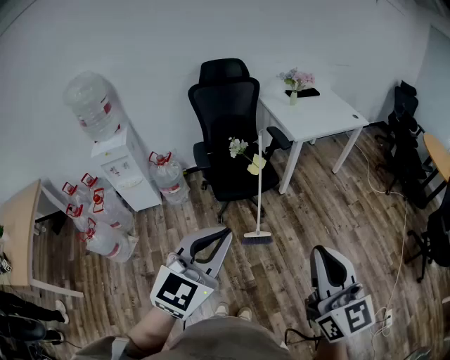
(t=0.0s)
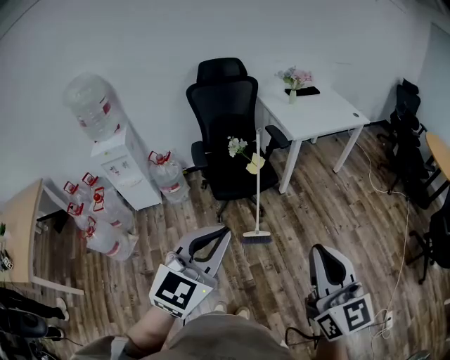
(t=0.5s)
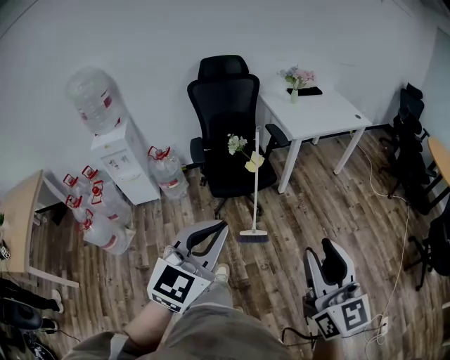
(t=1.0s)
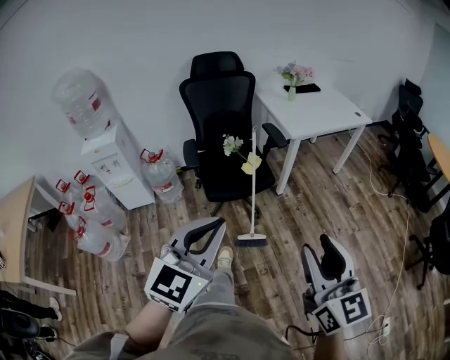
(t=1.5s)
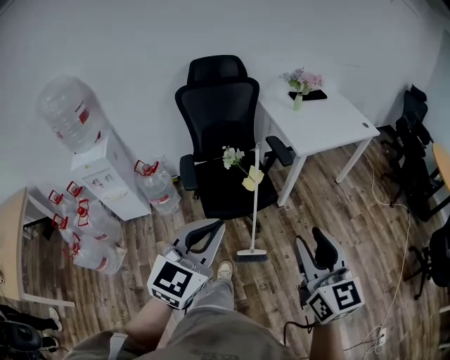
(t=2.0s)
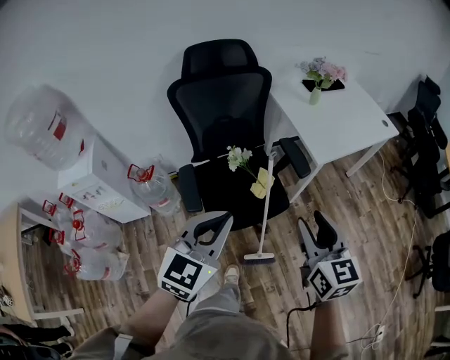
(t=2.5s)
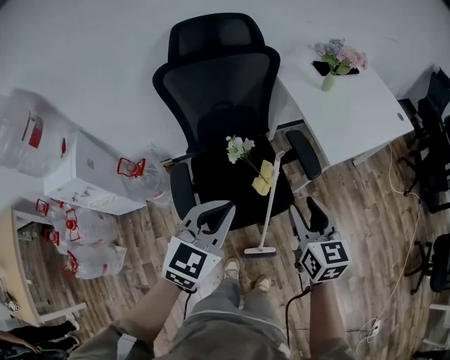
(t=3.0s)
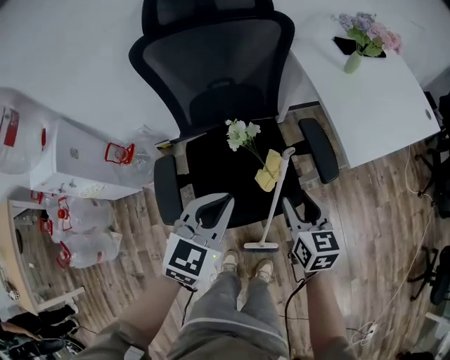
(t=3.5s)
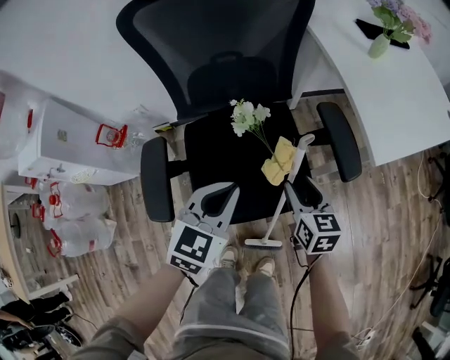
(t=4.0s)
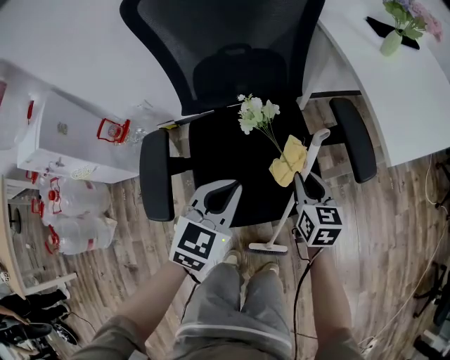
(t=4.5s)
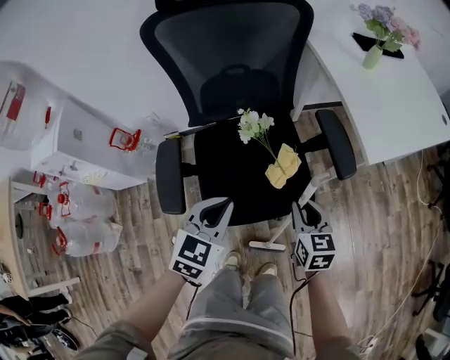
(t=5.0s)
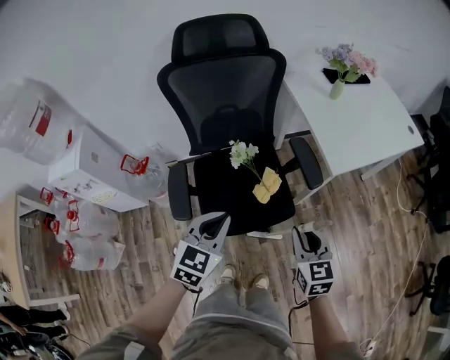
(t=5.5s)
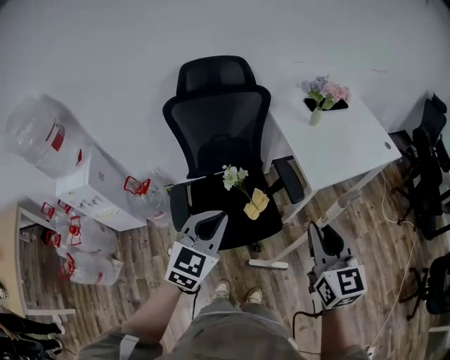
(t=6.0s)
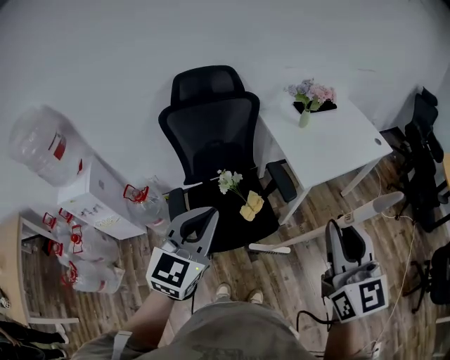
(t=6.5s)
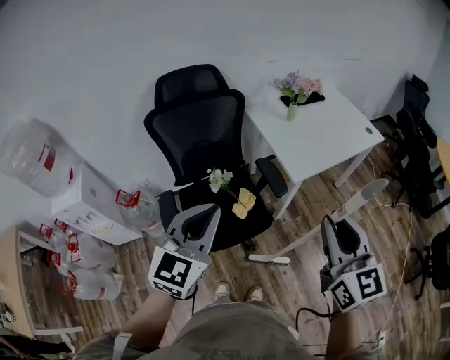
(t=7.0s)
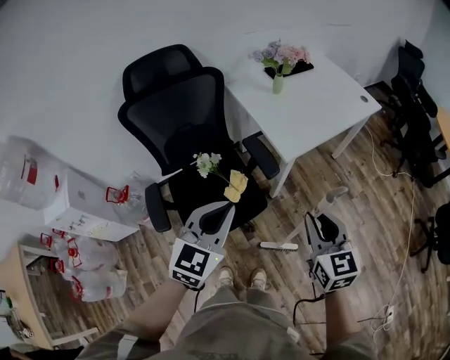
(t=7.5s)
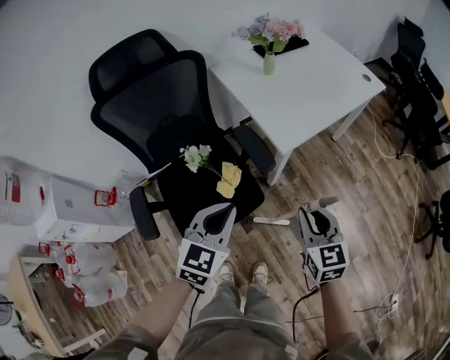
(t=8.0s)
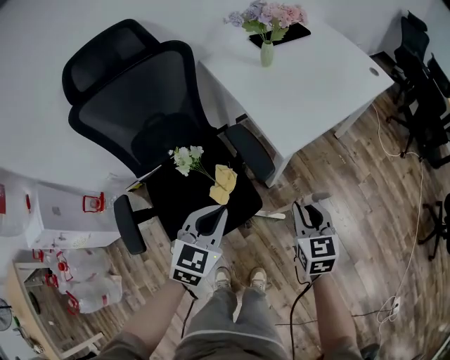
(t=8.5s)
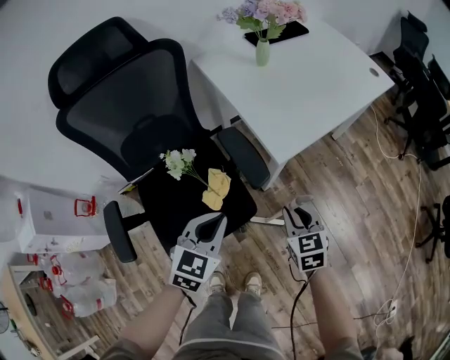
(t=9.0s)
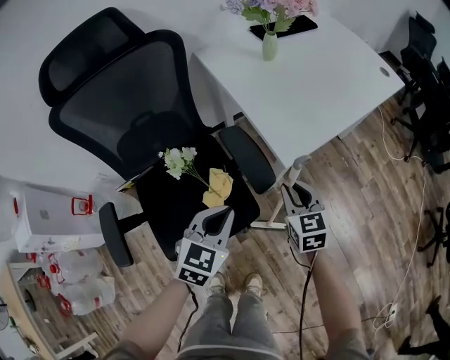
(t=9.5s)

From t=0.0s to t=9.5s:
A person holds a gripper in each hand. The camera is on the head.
From t=0.0s to t=2.0s: The grippers both shift forward by some 20 cm. The right gripper opens its fingers.
From t=2.0s to t=4.0s: Both grippers move forward and downward, approximately 60 cm. The left gripper turns by roughly 20 degrees. Meanwhile the right gripper swivels about 30 degrees.
From t=4.0s to t=5.5s: Both grippers travel together upward and backward, approximately 20 cm. The right gripper closes up.
From t=5.5s to t=7.5s: Both grippers move upward and to the right, roughly 20 cm.
From t=7.5s to t=9.5s: Both grippers travel together downward and forward, some 30 cm.

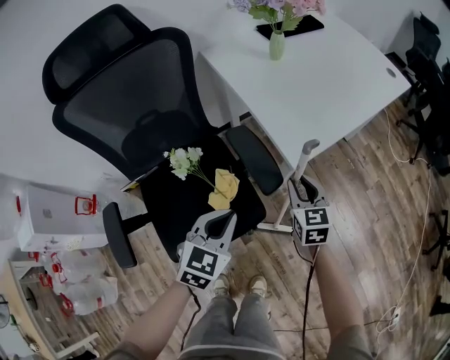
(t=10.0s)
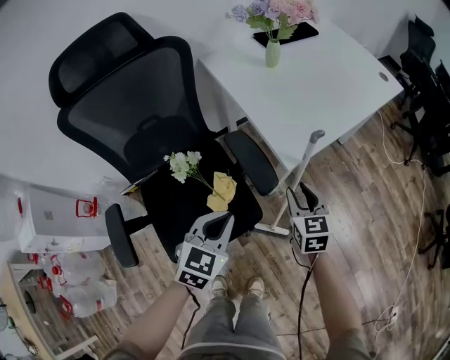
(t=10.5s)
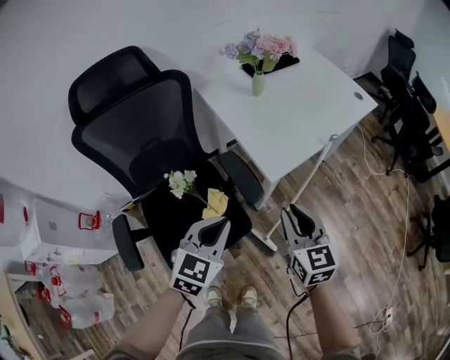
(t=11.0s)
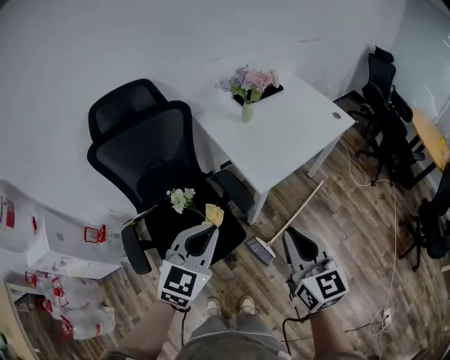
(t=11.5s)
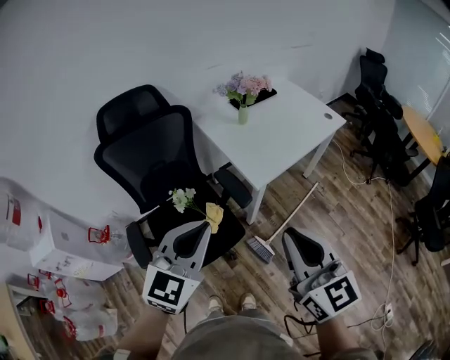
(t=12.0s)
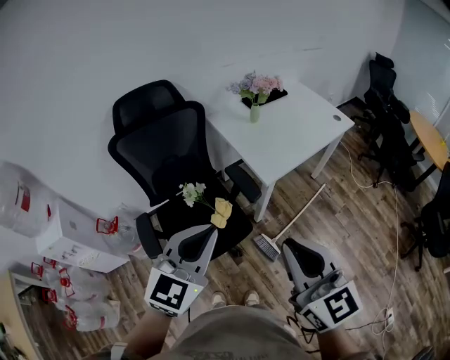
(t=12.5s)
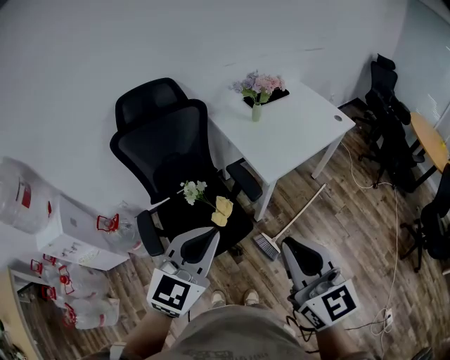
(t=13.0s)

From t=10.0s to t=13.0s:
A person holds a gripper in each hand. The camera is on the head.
From t=10.0s to t=11.5s: The right gripper goes some 40 cm upward and backward, and changes its angle by some 20 degrees; the left gripper travels upward by roughly 25 cm.
From t=11.5s to t=13.0s: The left gripper moves backward and upward, about 15 cm. The right gripper moves backward, upward and to the left, about 15 cm.

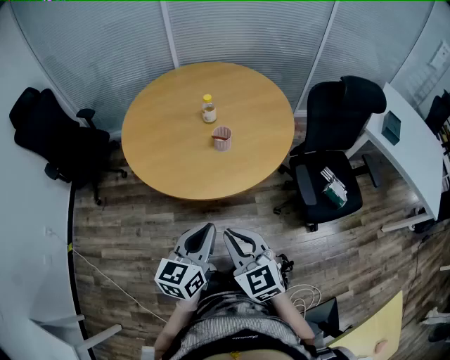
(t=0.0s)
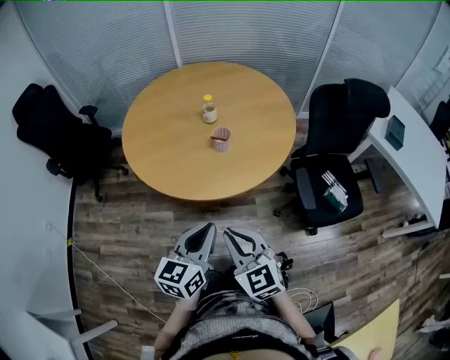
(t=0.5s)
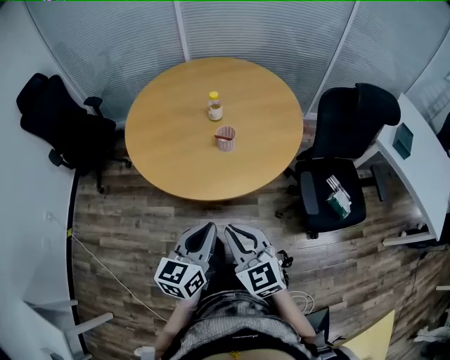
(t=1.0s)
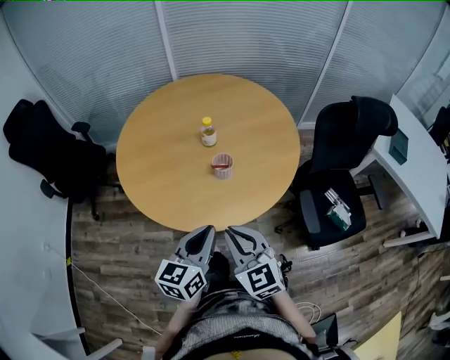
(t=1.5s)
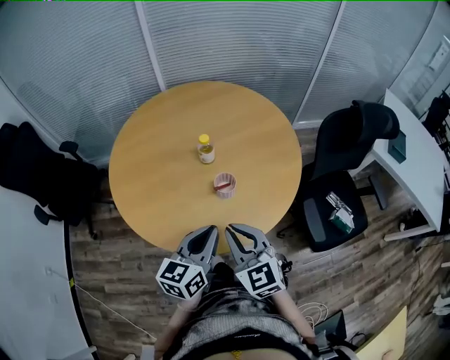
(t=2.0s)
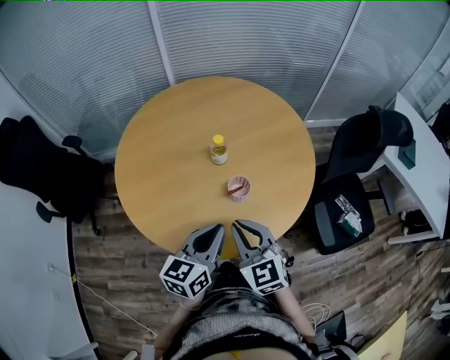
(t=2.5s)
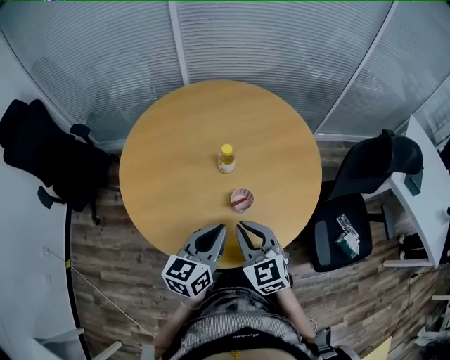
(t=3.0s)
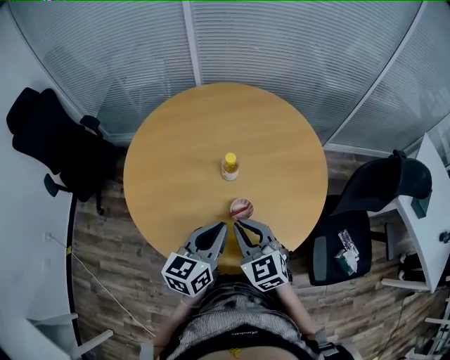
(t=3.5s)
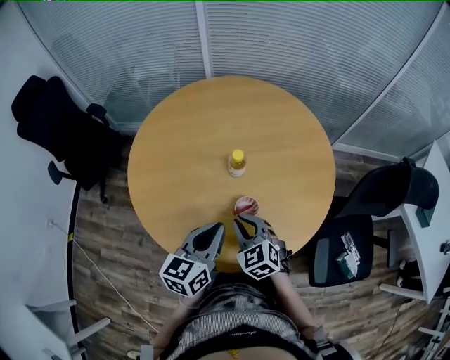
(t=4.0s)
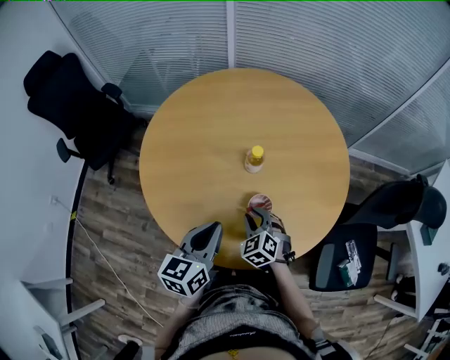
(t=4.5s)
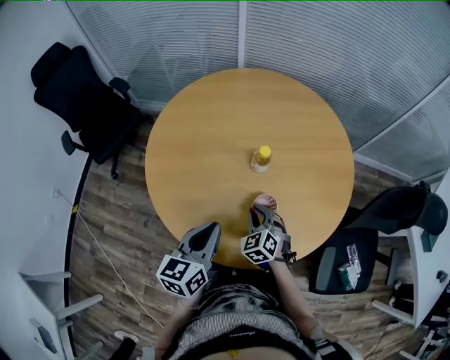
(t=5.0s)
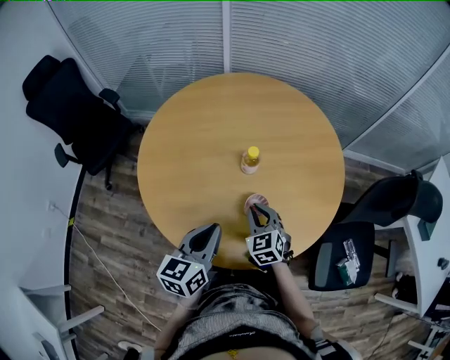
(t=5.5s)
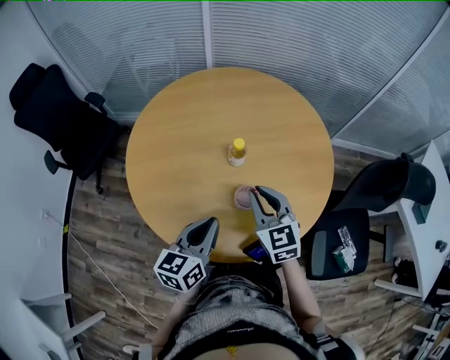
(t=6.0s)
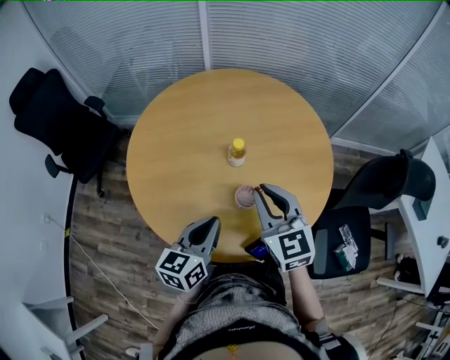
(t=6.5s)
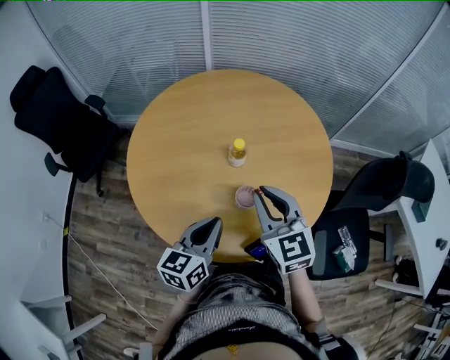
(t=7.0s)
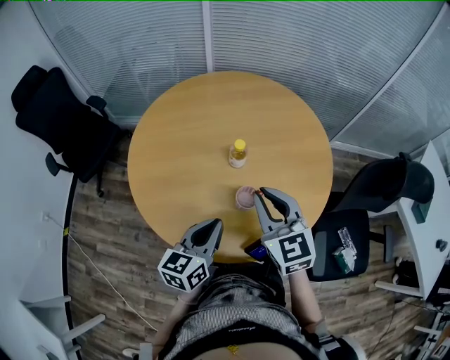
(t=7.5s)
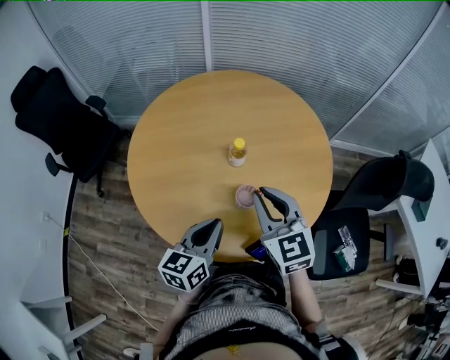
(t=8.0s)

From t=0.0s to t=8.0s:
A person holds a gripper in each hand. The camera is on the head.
From t=0.0s to t=2.0s: The grippers both shift forward by some 25 cm.
From t=2.0s to t=4.0s: The right gripper travels forward and downward by roughly 20 cm, and rotates some 20 degrees; the left gripper is displaced forward by about 10 cm.
From t=4.0s to t=6.0s: The right gripper goes about 10 cm upward, and turns by roughly 20 degrees.
From t=6.0s to t=8.0s: The right gripper travels upward by some 5 cm.

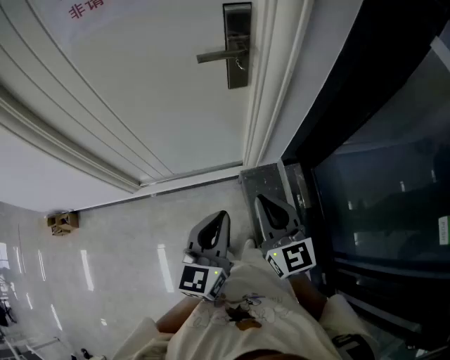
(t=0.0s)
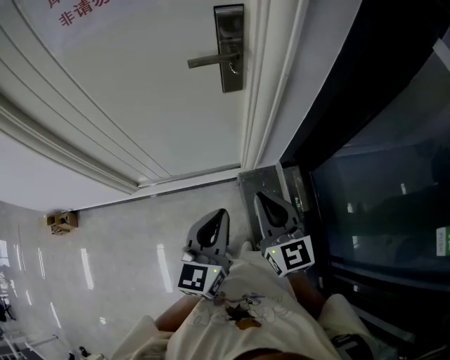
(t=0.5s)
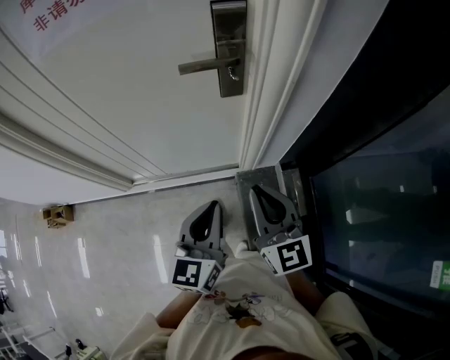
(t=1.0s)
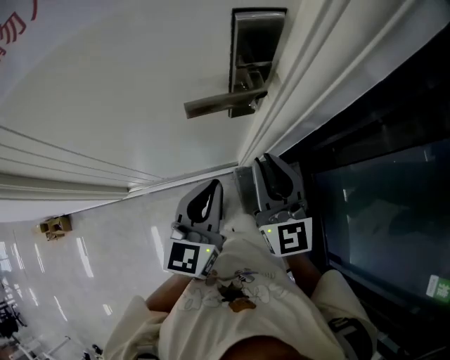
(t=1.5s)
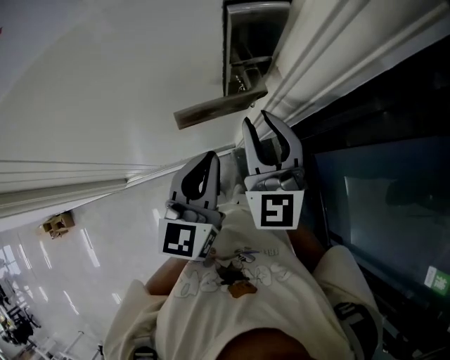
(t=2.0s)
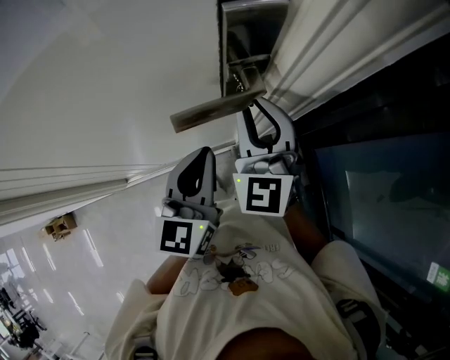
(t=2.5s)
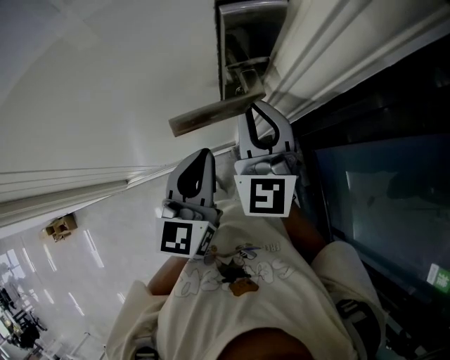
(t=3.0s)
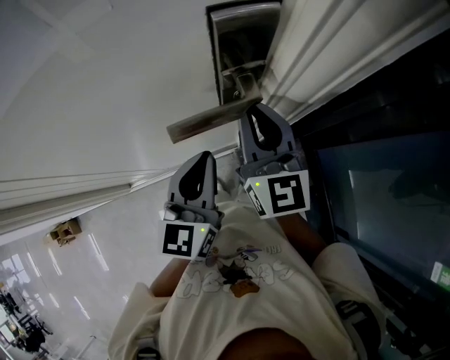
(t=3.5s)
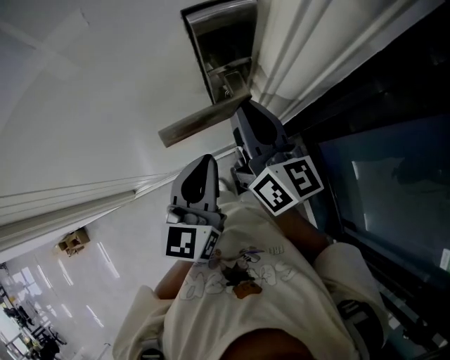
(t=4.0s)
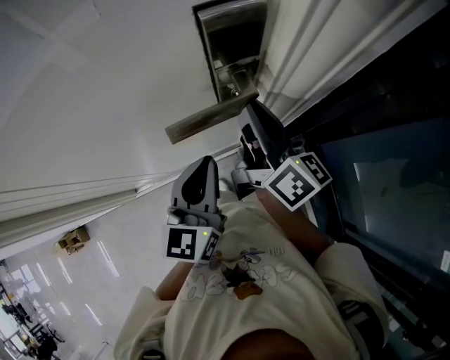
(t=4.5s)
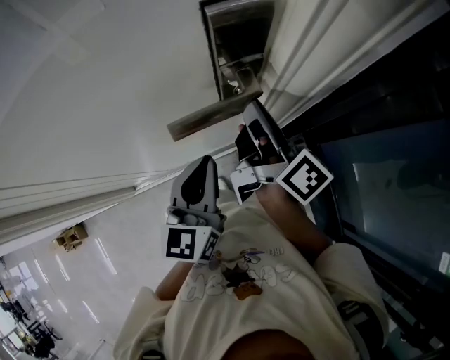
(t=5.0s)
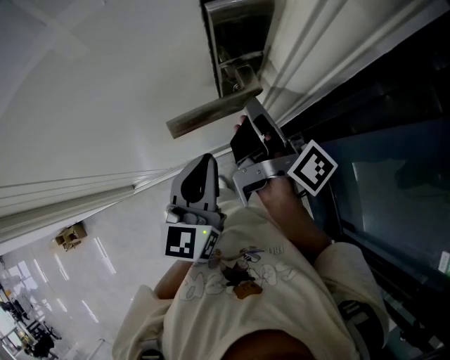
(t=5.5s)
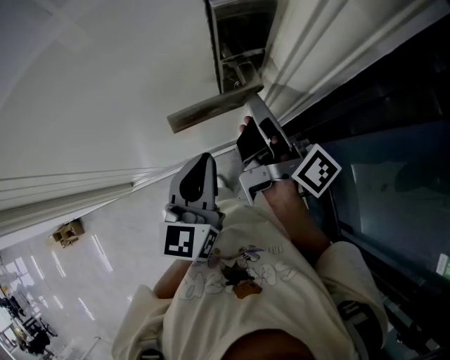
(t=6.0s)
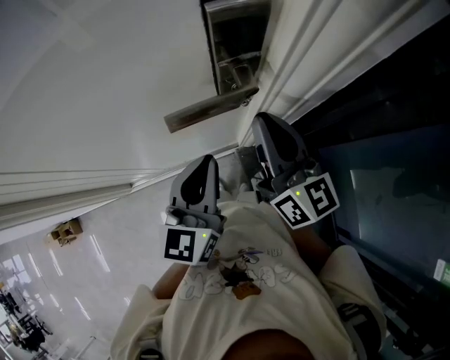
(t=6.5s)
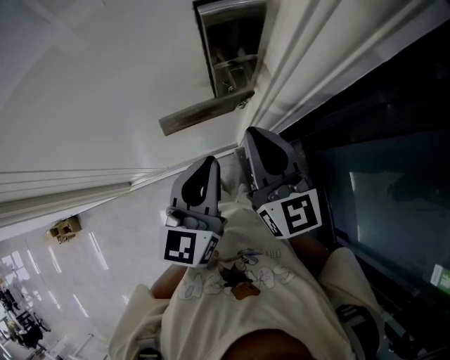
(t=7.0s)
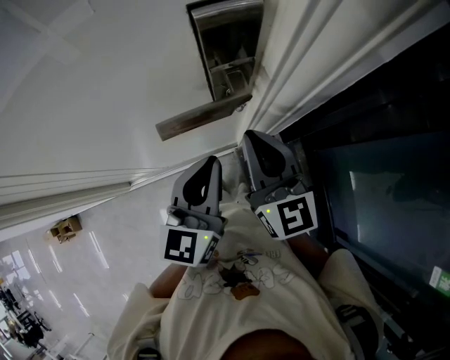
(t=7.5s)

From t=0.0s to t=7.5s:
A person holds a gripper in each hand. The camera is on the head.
From t=0.0s to t=2.0s: Both grippers travel together upward and forward, some 10 cm. The right gripper changes its angle by approximately 30 degrees, and opens its fingers.
From t=2.0s to t=4.0s: The right gripper rotates around the line of its fingers by roughly 50 degrees, clockwise from behind.
From t=4.0s to t=5.5s: The right gripper rotates around the line of its fingers by approximately 50 degrees, clockwise from behind.
From t=5.5s to t=7.5s: The right gripper is displaced backward by some 5 cm, and rotates around the line of its fingers by approximately 70 degrees, counterclockwise from behind.
